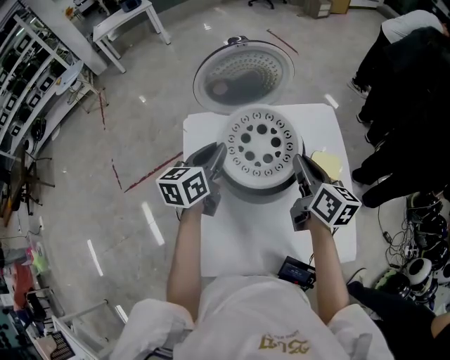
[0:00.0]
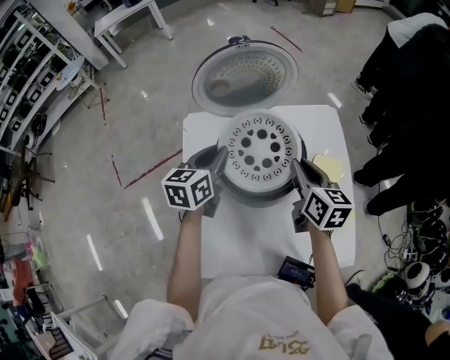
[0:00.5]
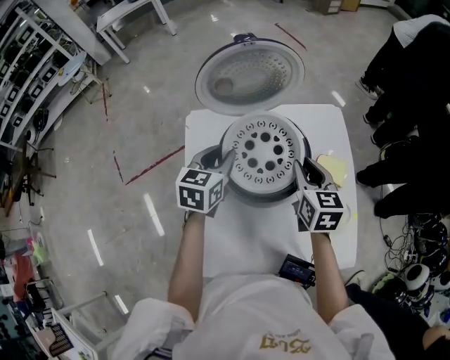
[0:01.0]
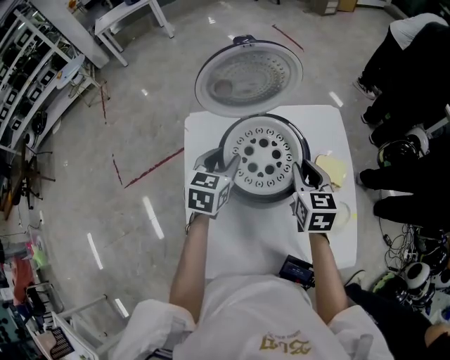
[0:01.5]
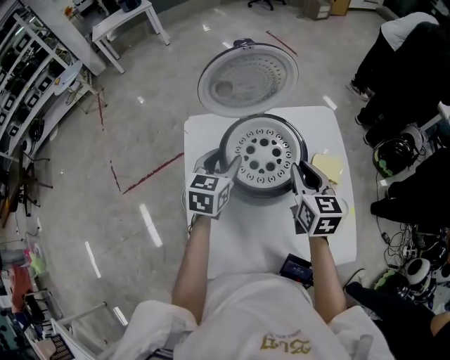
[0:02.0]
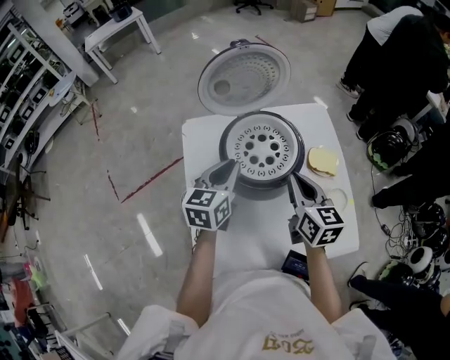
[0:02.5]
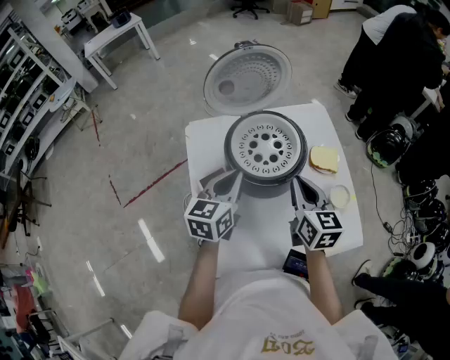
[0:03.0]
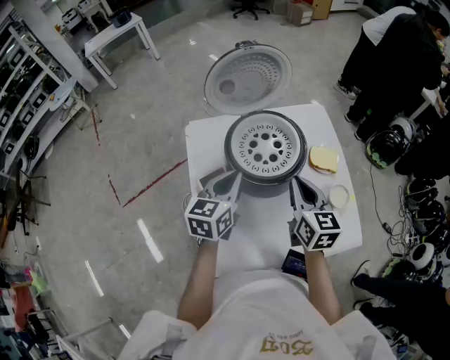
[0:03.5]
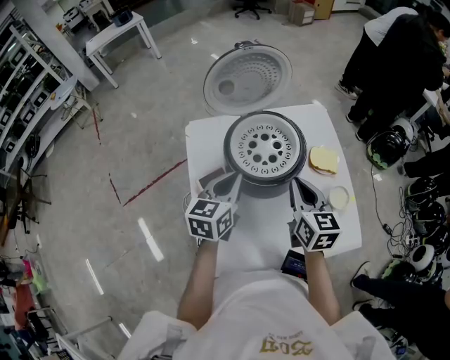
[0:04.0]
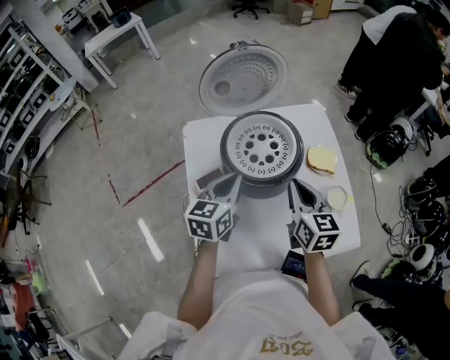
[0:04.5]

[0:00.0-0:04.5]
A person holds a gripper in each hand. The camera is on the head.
0:00.0 to 0:02.0: The left gripper rotates roughly 20 degrees, and opens up. The right gripper swivels about 30 degrees.
0:02.0 to 0:04.5: Both grippers travel together backward, about 10 cm. The left gripper closes.

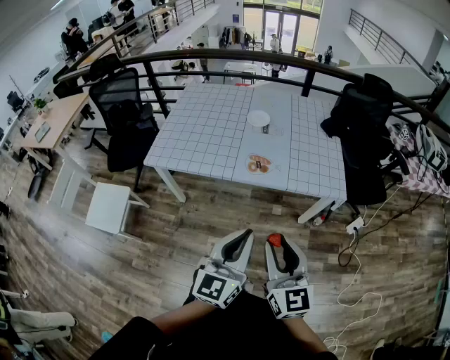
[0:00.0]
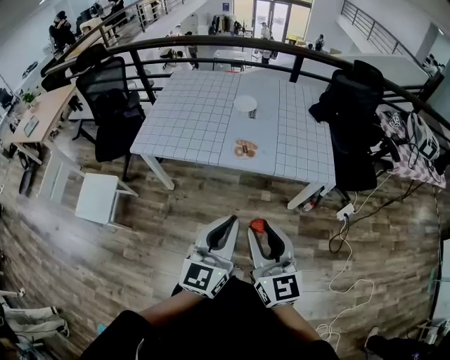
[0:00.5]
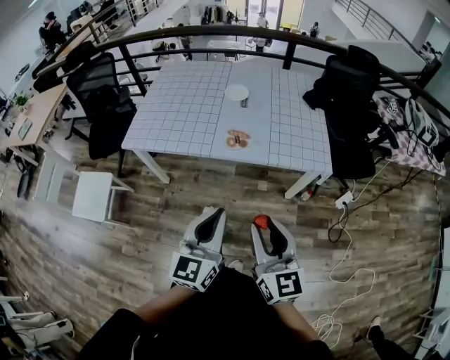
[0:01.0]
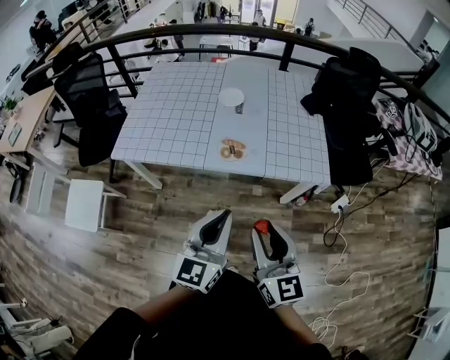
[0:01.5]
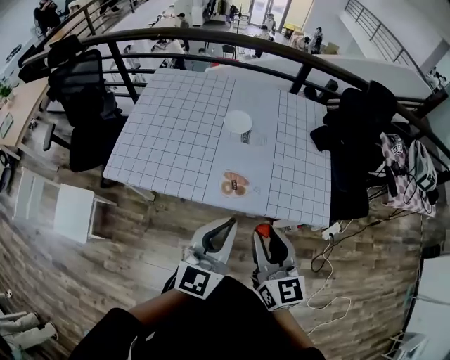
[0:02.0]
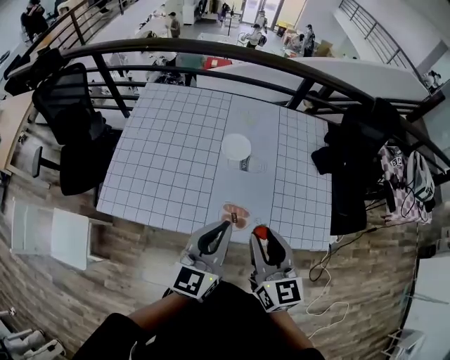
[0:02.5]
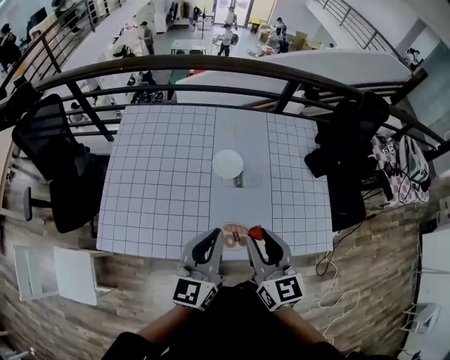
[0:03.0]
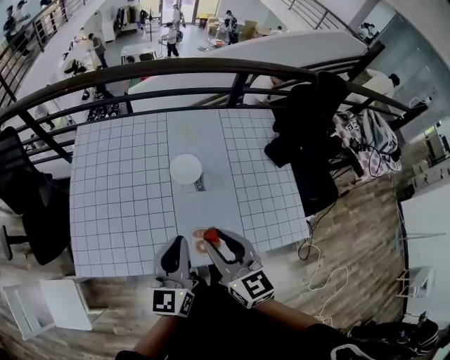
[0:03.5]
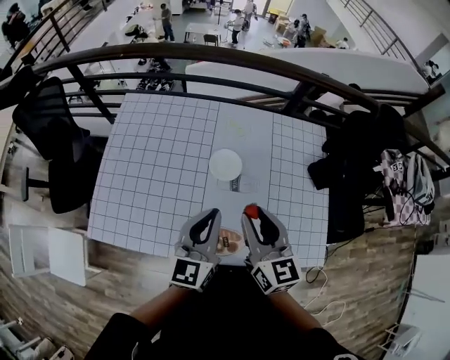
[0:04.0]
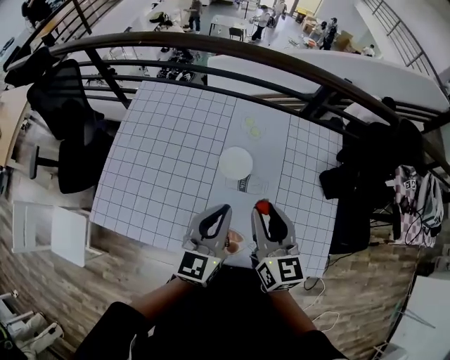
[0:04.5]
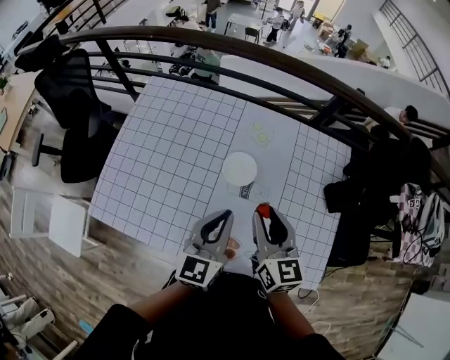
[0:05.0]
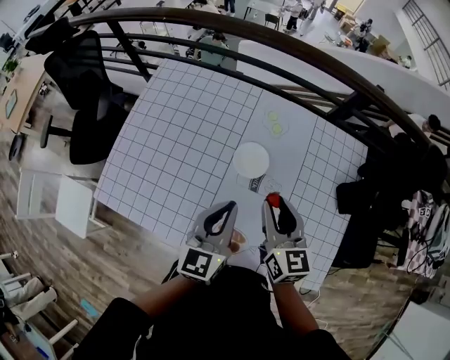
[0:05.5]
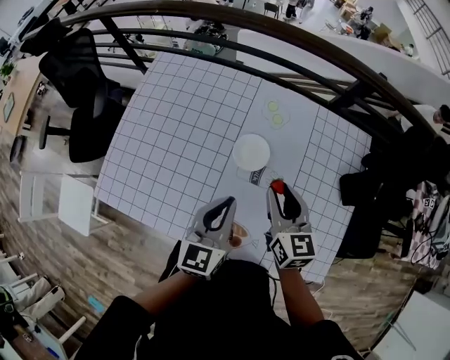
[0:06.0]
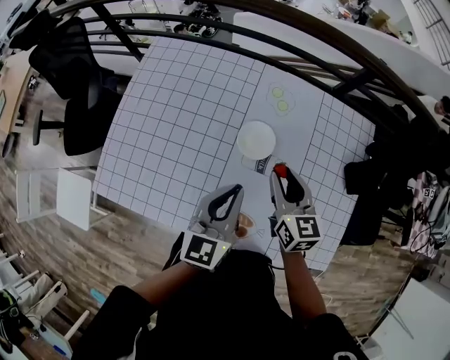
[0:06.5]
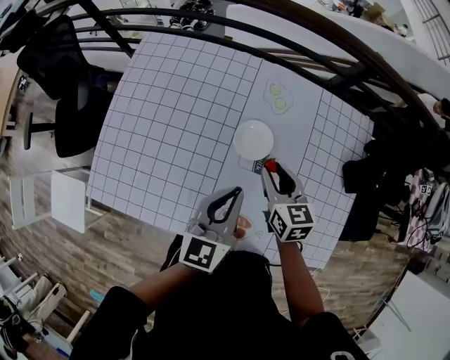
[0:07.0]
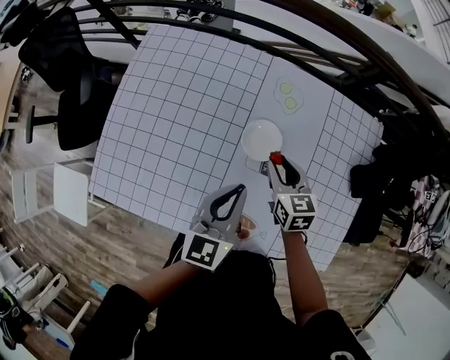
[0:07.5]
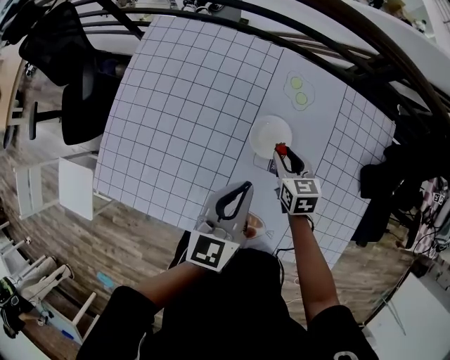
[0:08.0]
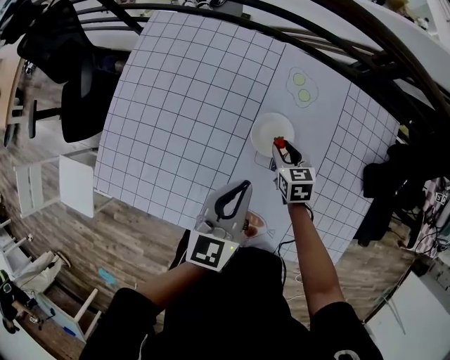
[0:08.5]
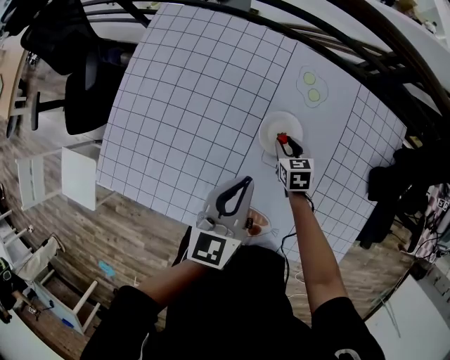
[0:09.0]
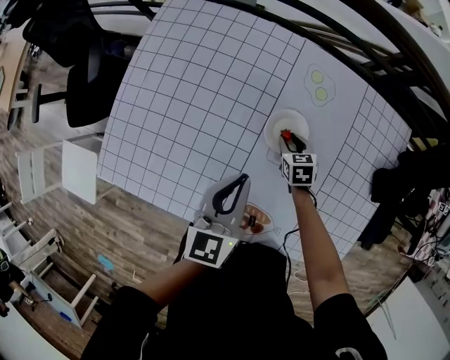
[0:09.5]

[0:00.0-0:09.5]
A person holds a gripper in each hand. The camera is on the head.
0:00.0 to 0:02.0: The grippers both shift forward by some 25 cm.
0:02.0 to 0:04.0: The grippers both shift forward by about 30 cm.
0:04.0 to 0:05.5: The left gripper is displaced forward by some 5 cm; the right gripper travels forward and downward by approximately 10 cm.
0:05.5 to 0:07.5: The right gripper travels downward and forward by some 15 cm, and swivels roughly 20 degrees; the left gripper shifts approximately 5 cm downward.
0:07.5 to 0:09.5: The right gripper heads downward, covering approximately 20 cm, and rotates some 20 degrees. The left gripper shifts by approximately 5 cm.

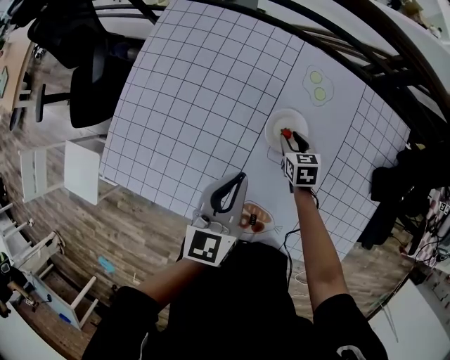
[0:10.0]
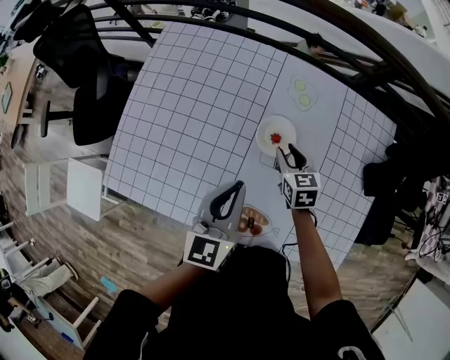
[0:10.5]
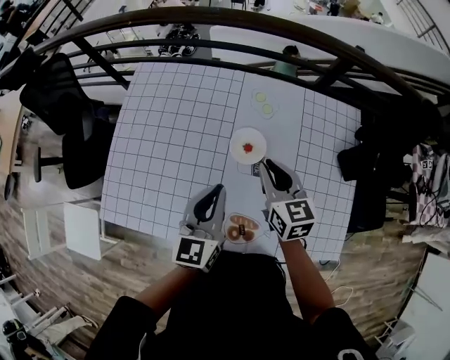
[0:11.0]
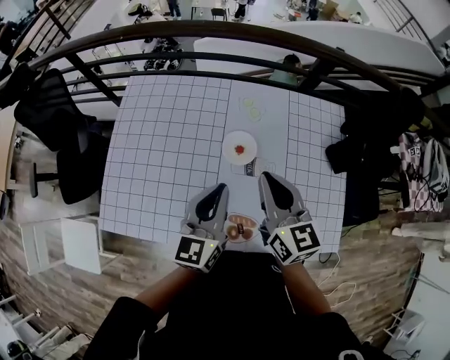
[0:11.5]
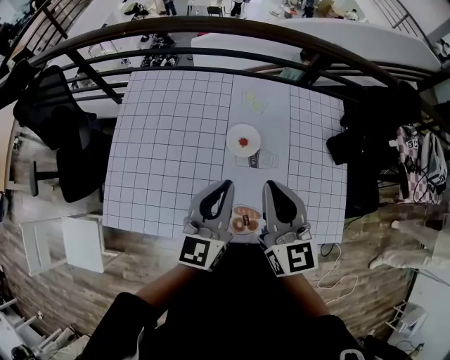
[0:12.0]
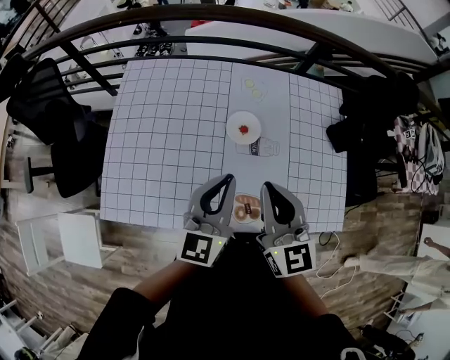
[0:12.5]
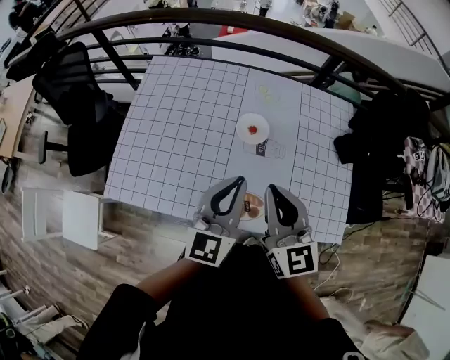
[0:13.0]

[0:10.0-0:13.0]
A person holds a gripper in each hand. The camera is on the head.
0:10.0 to 0:11.5: The right gripper goes some 35 cm upward, tilts its fingers approximately 40 degrees upward, and closes up, while the left gripper travels upward and backward by roughly 15 cm.
0:11.5 to 0:13.0: Both grippers move backward, about 10 cm.

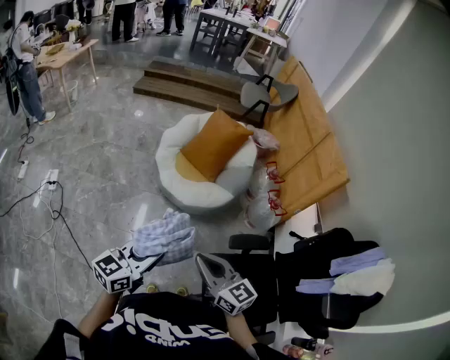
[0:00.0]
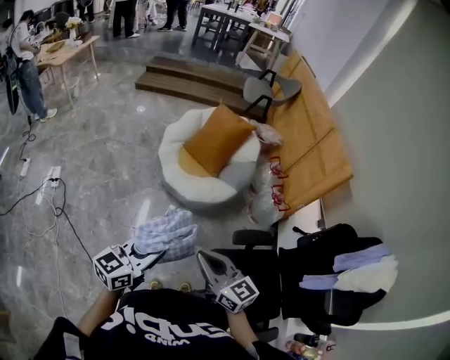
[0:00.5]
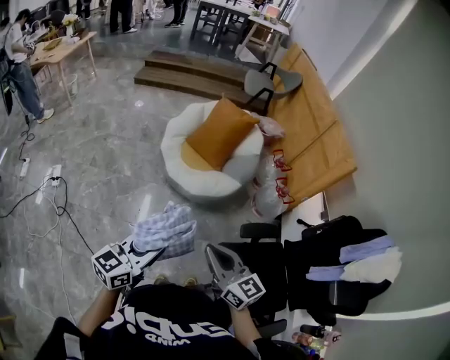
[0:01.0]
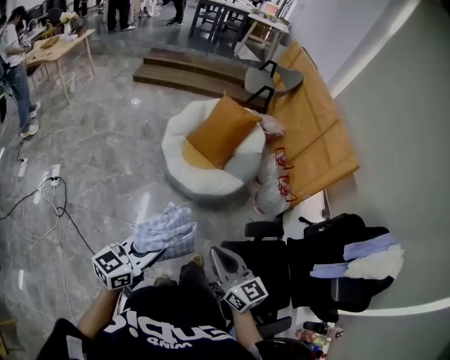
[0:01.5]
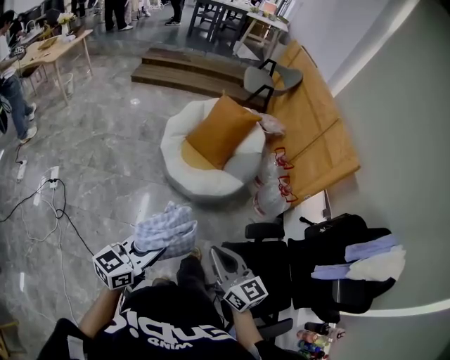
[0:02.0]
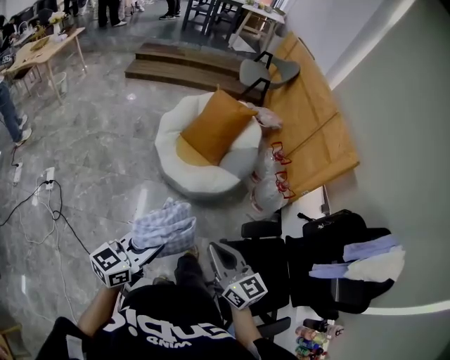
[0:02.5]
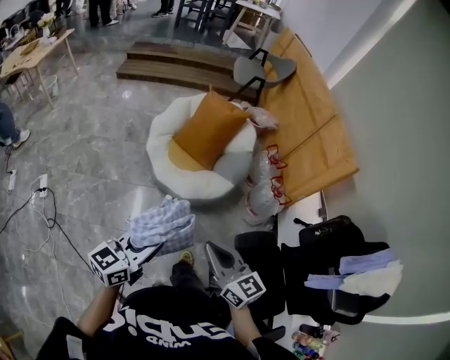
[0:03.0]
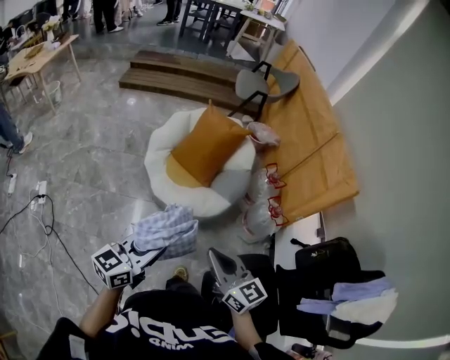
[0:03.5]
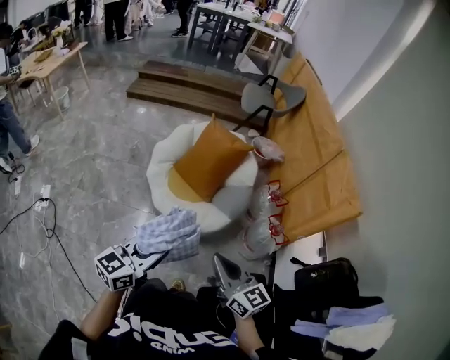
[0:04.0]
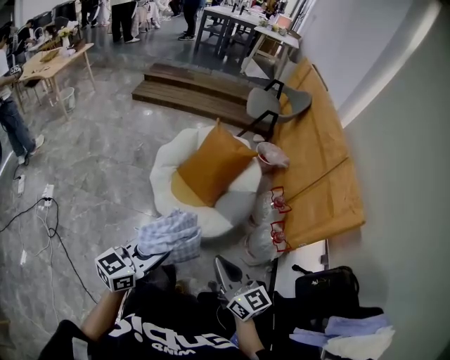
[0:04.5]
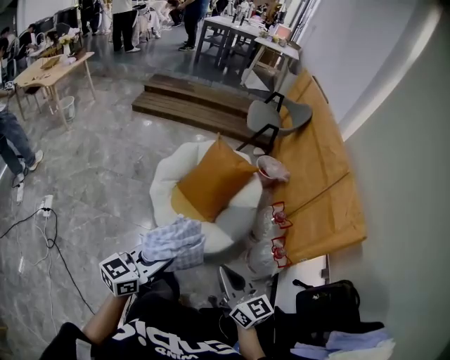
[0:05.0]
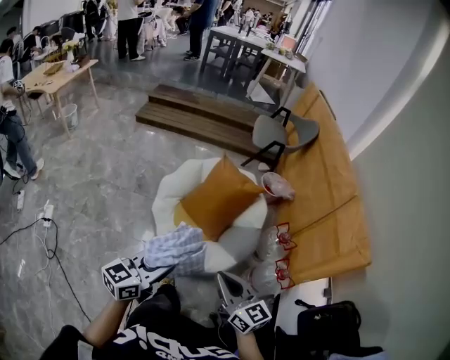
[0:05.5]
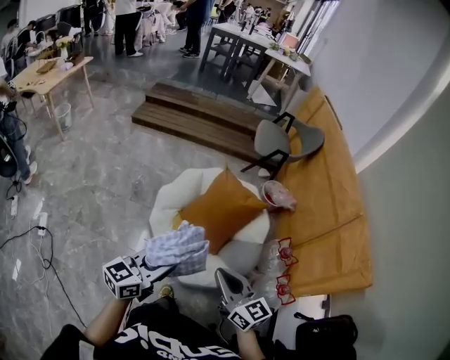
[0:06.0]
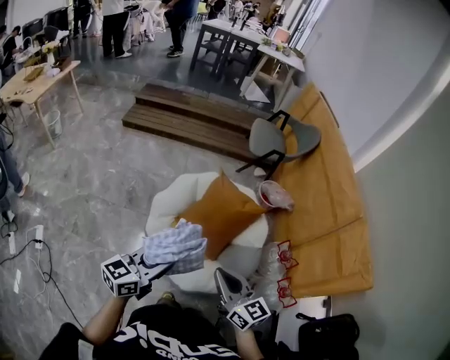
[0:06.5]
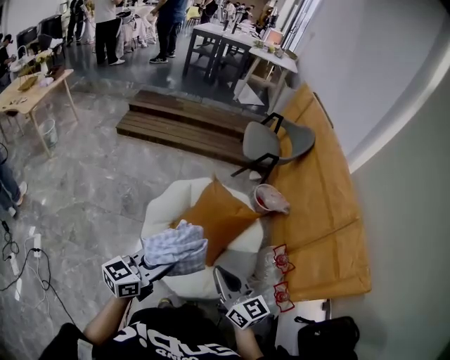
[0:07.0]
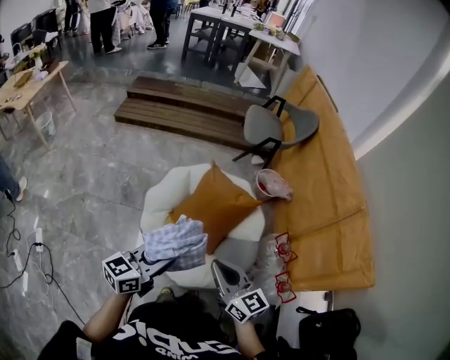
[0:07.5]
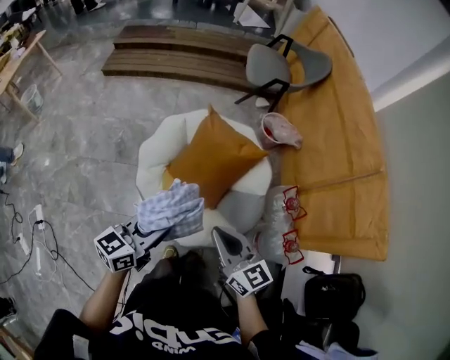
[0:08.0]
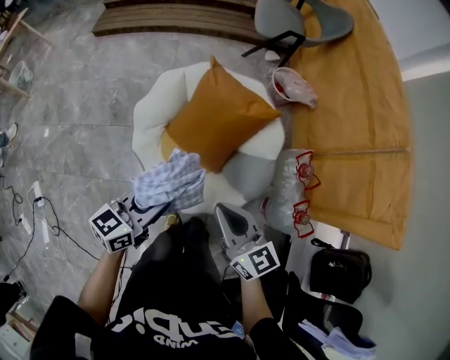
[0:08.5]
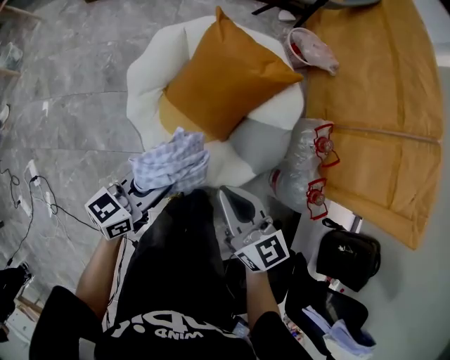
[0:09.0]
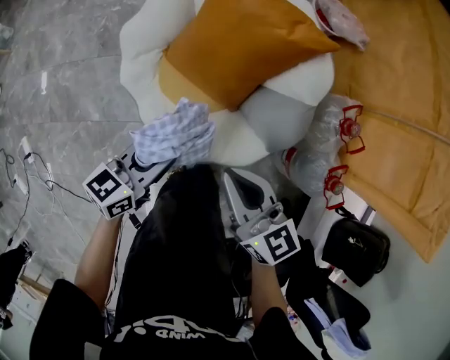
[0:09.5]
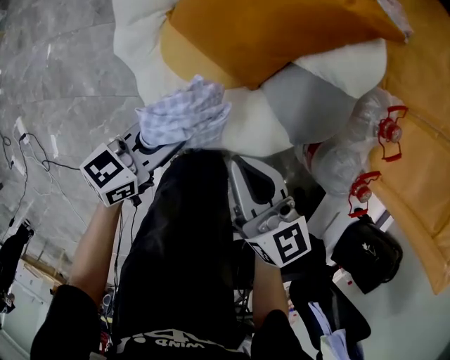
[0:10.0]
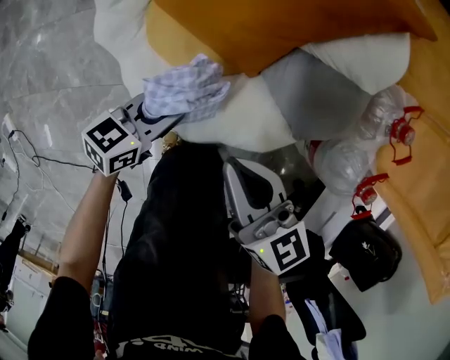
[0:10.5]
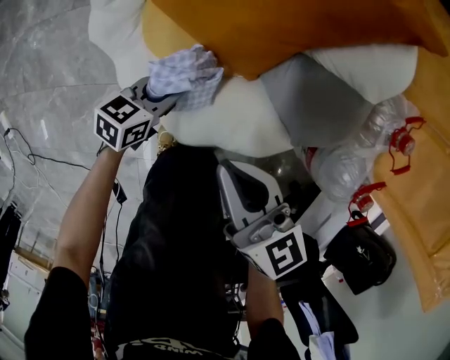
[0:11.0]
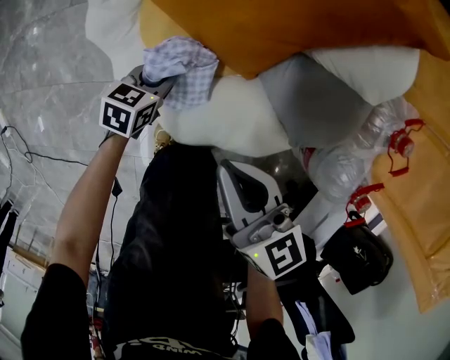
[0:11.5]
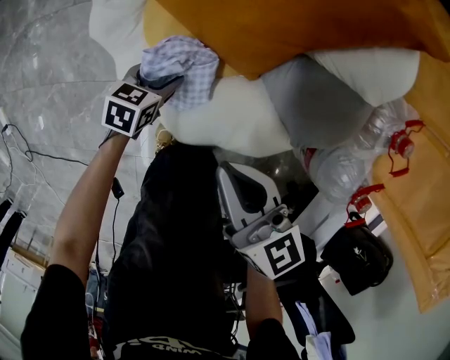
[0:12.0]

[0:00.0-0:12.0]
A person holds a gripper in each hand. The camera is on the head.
0:00.0 to 0:02.0: The left gripper heads to the left, covering roughly 5 cm.
0:02.0 to 0:04.0: The grippers both shift forward and to the right by some 30 cm.
0:04.0 to 0:06.0: The grippers both shift forward by roughly 25 cm.
0:06.0 to 0:08.0: The grippers both shift forward and downward by some 20 cm.
0:08.0 to 0:10.0: The grippers both shift downward by roughly 40 cm. The left gripper rotates about 20 degrees.
0:10.0 to 0:12.0: The right gripper travels downward by about 10 cm. Meanwhile the left gripper moves downward, approximately 25 cm, changes its angle by approximately 30 degrees, and opens its fingers.
